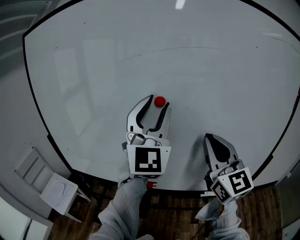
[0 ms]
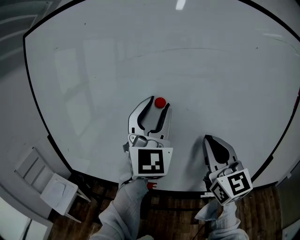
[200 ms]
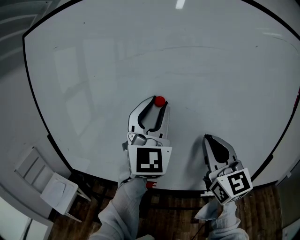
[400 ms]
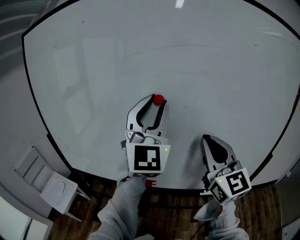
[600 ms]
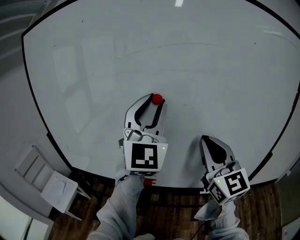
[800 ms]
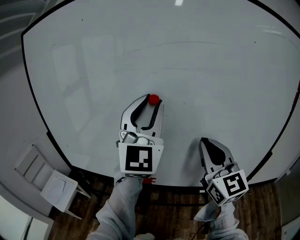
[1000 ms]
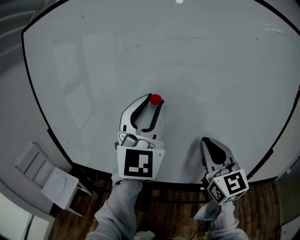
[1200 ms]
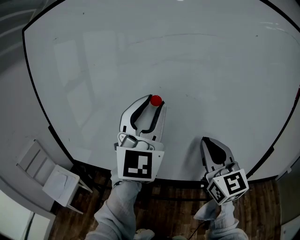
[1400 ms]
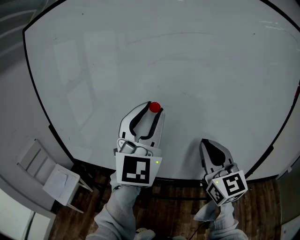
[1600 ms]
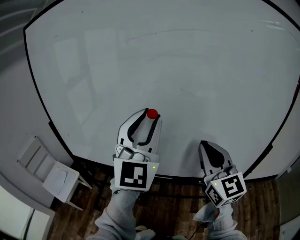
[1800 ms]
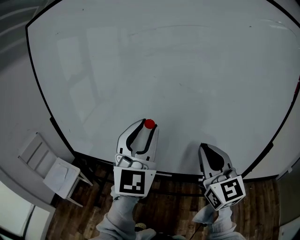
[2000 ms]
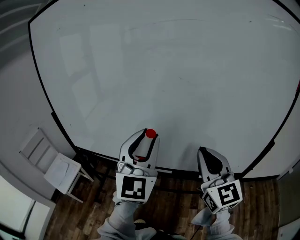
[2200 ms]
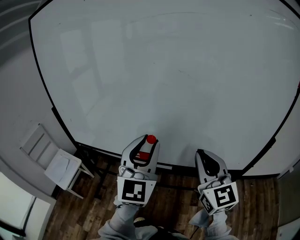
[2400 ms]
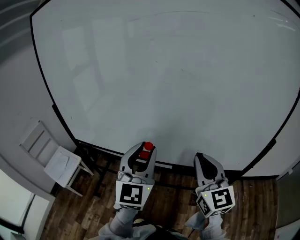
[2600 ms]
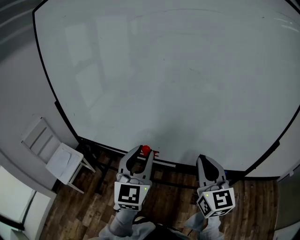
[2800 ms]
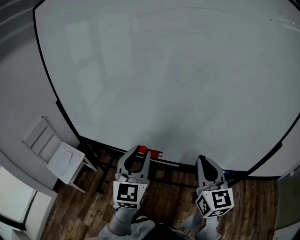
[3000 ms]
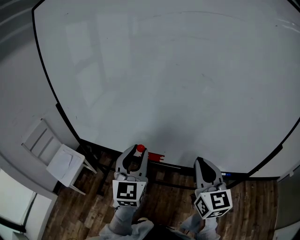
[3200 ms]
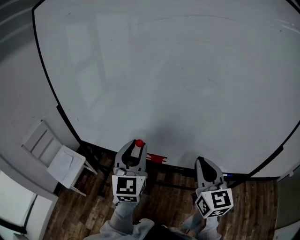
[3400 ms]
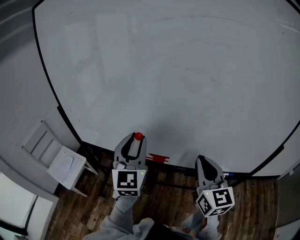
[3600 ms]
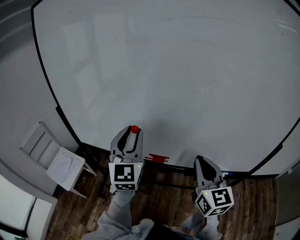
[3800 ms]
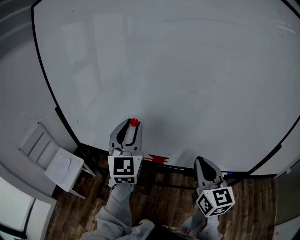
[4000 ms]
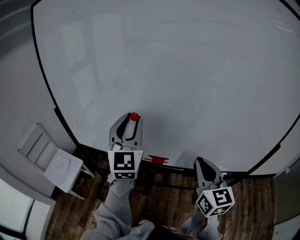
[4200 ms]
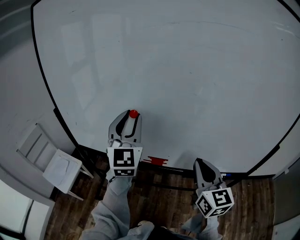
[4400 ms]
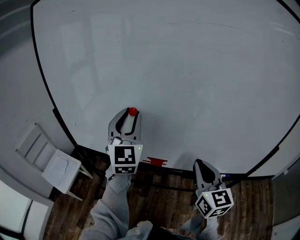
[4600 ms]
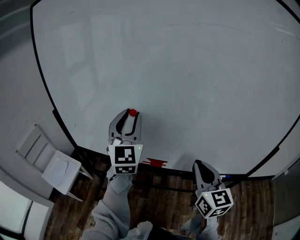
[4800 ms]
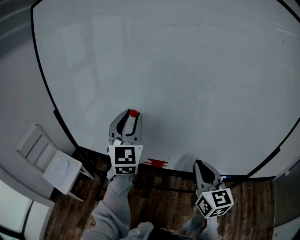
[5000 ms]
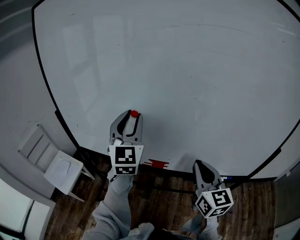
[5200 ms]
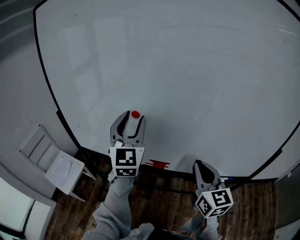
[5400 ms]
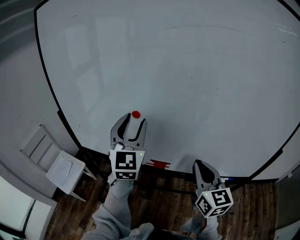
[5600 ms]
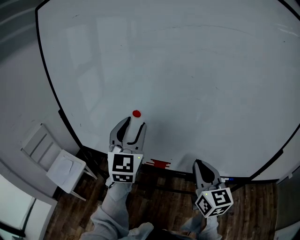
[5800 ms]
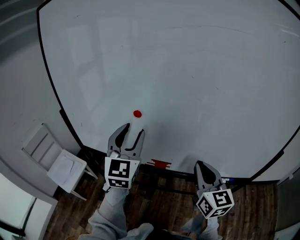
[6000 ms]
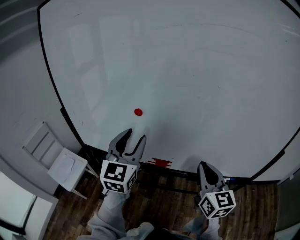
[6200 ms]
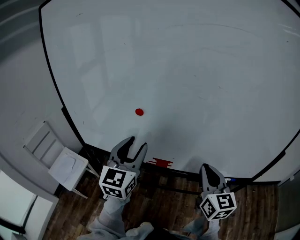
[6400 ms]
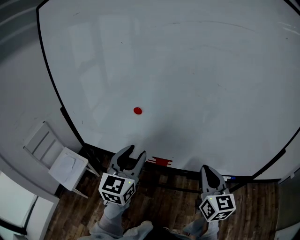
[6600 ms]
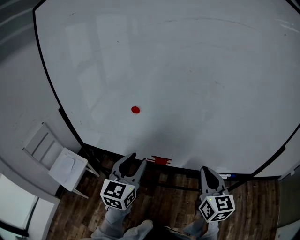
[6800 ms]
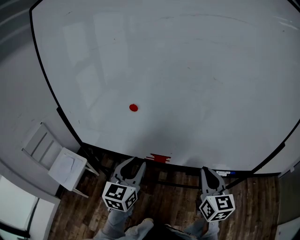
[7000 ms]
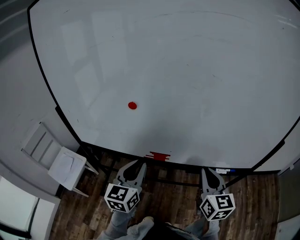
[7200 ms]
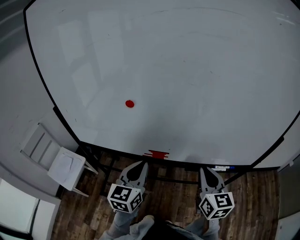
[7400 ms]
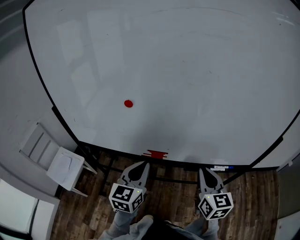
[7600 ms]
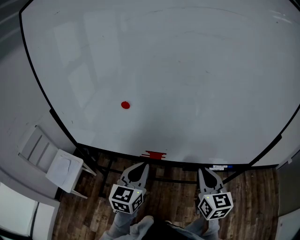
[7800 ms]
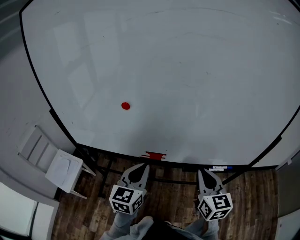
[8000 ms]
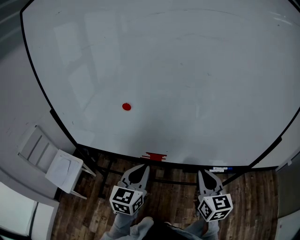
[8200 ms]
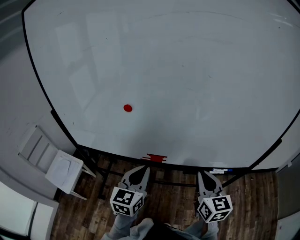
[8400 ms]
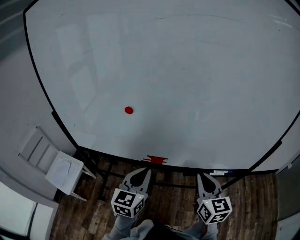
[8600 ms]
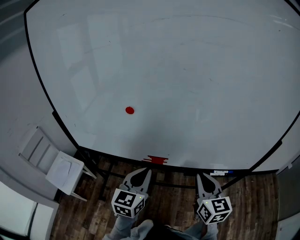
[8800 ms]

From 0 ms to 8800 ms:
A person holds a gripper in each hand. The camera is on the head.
From 0 ms to 1400 ms: The right gripper ends up about 5 cm from where it was.
From 1400 ms to 3000 ms: The right gripper goes approximately 15 cm downward, while the left gripper moves downward, about 25 cm, and turns by roughly 30 degrees.
From 3000 ms to 4400 ms: The right gripper heads to the left, covering about 5 cm; the left gripper goes some 15 cm forward, upward and to the left.
From 4400 ms to 5800 ms: The grippers move only a little.
From 5800 ms to 7400 ms: The left gripper shifts some 20 cm downward and backward, turns by roughly 30 degrees, and closes its fingers; the right gripper is displaced downward by some 5 cm.
From 7400 ms to 8800 ms: There are only small adjustments of the grippers.

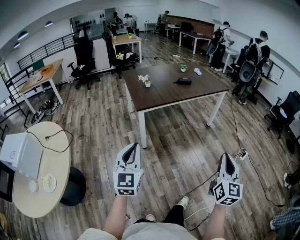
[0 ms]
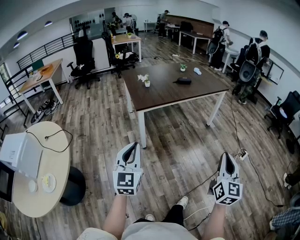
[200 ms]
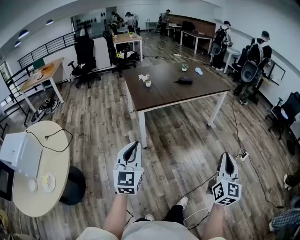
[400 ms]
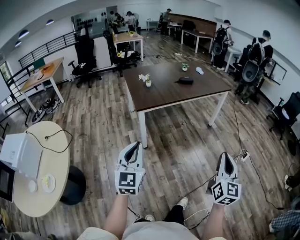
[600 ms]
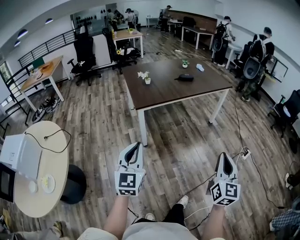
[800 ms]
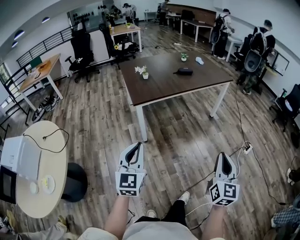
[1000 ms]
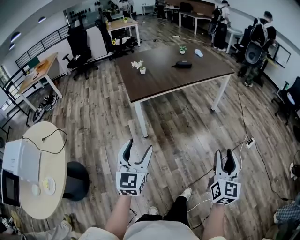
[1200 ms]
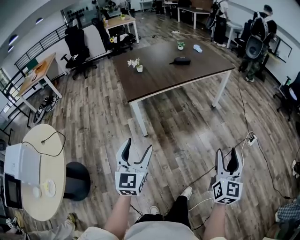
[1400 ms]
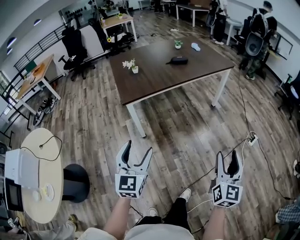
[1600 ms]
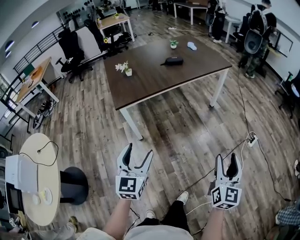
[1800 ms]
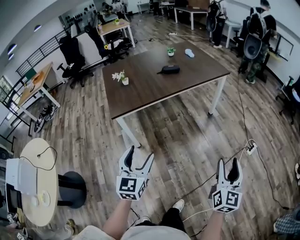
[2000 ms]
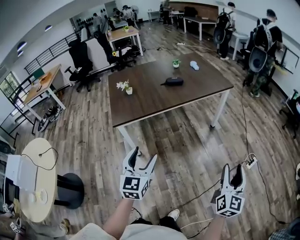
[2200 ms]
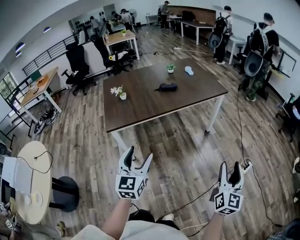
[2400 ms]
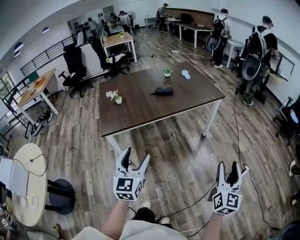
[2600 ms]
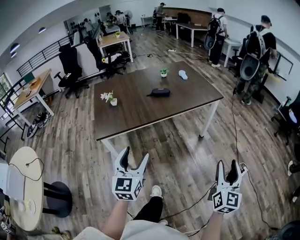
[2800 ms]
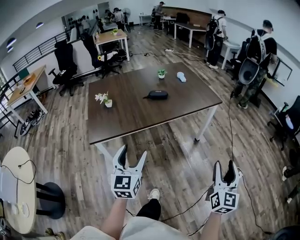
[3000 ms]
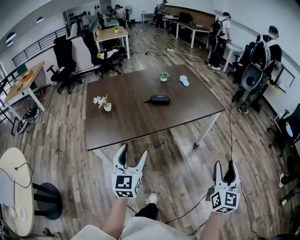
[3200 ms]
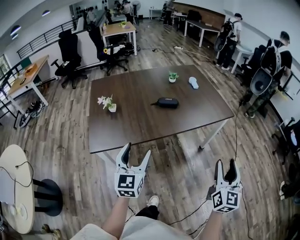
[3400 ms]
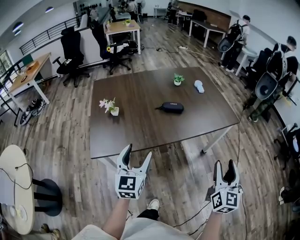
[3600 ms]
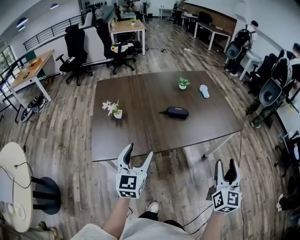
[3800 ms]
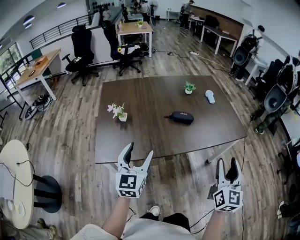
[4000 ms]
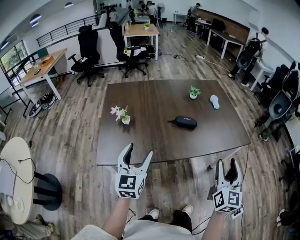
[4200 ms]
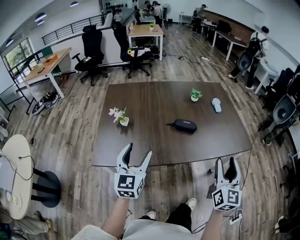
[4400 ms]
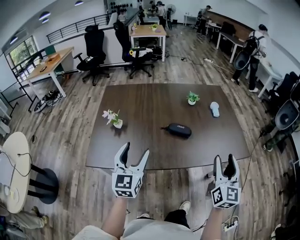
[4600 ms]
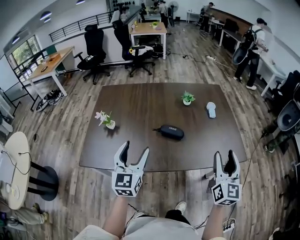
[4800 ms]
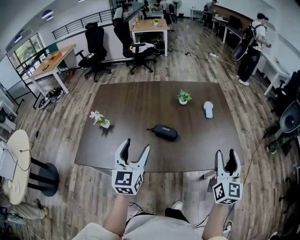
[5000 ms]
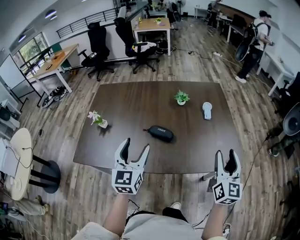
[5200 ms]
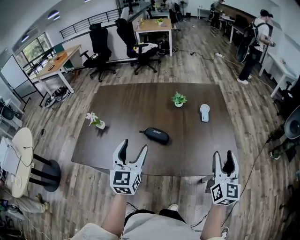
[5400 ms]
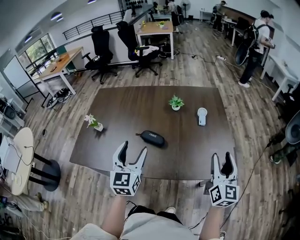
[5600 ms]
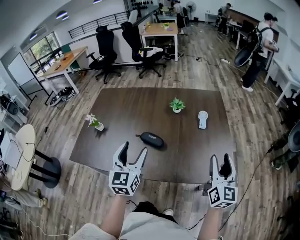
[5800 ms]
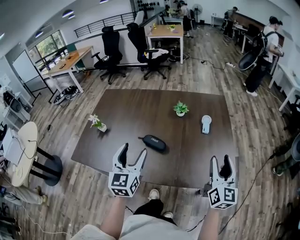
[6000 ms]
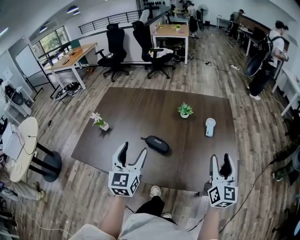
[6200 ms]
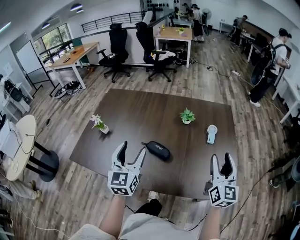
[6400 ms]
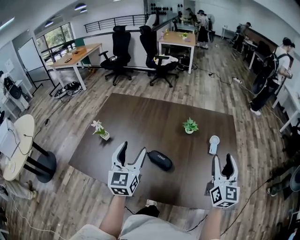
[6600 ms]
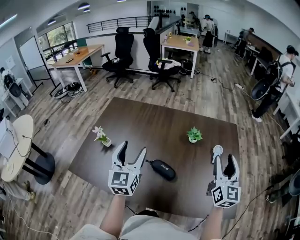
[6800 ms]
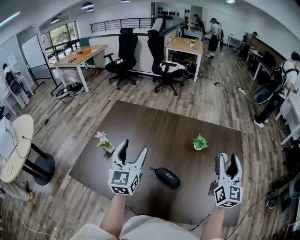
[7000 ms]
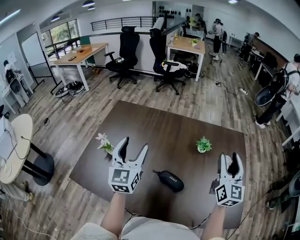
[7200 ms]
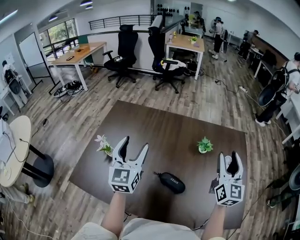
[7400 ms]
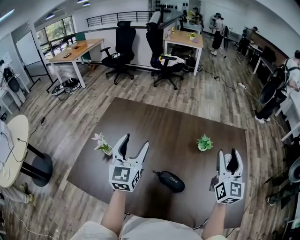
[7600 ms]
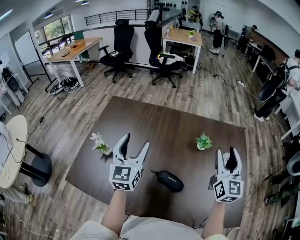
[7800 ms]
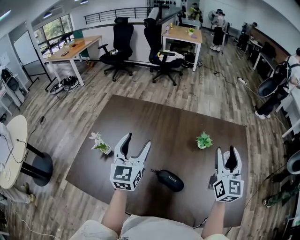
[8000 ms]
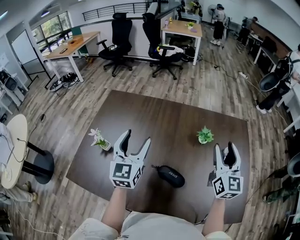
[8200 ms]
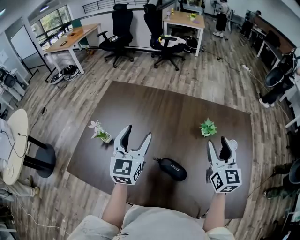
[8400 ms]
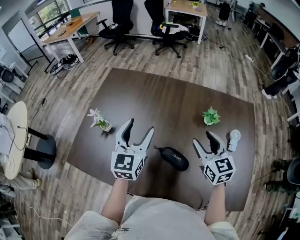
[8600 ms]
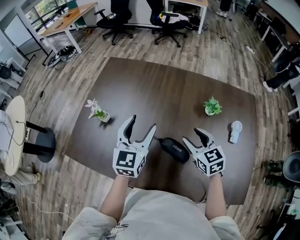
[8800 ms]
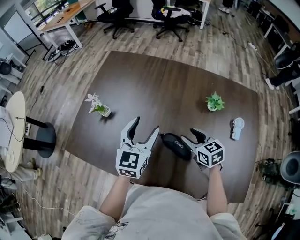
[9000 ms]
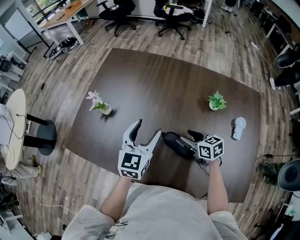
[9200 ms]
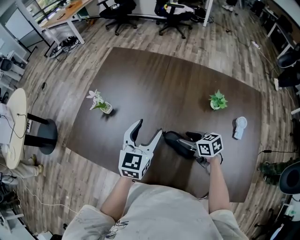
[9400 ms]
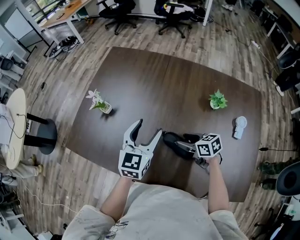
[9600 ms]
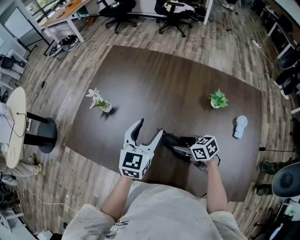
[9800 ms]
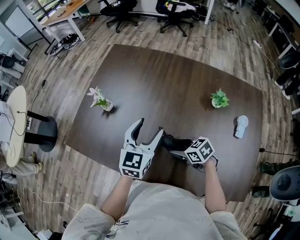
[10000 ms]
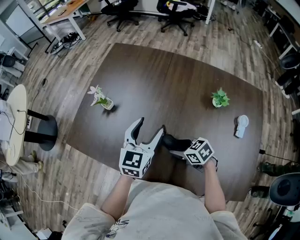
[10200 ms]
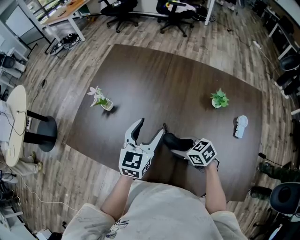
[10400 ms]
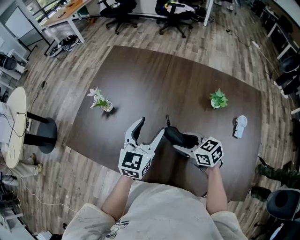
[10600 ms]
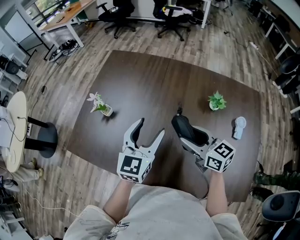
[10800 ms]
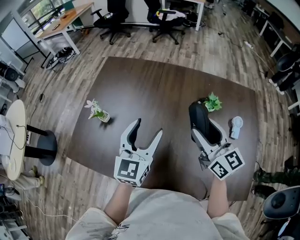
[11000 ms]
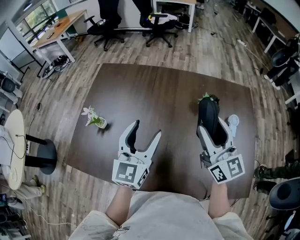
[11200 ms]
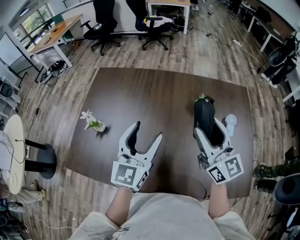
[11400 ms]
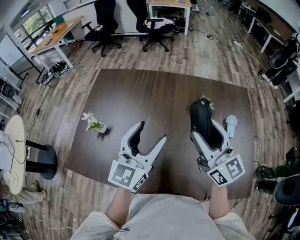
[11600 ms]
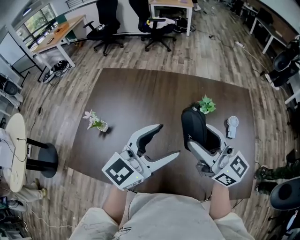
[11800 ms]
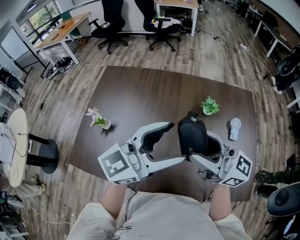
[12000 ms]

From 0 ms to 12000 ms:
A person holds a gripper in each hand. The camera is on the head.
From 0 ms to 1600 ms: The right gripper is displaced forward, downward and to the right by some 15 cm, and opens. Meanwhile the left gripper goes about 20 cm forward, to the right and downward, and opens.
From 1600 ms to 3000 ms: Both grippers move forward and to the right, about 35 cm.
From 3000 ms to 4400 ms: The two grippers go some 35 cm forward.
From 4400 ms to 6000 ms: The grippers both shift to the right and forward by some 35 cm.
From 6000 ms to 7600 ms: The two grippers go roughly 30 cm forward and to the left.
From 7600 ms to 9000 ms: The right gripper is displaced downward and to the left by roughly 30 cm, and points its fingers roughly 40 degrees further downward; the left gripper heads downward, covering about 10 cm.
From 9000 ms to 10400 ms: The right gripper is displaced to the left and downward by approximately 10 cm, and swivels some 30 degrees.
From 10400 ms to 12000 ms: The left gripper travels upward by some 20 cm, and rotates some 50 degrees. Meanwhile the right gripper travels upward by roughly 35 cm, and points its fingers about 60 degrees further upward.

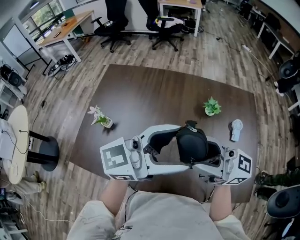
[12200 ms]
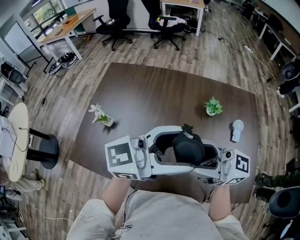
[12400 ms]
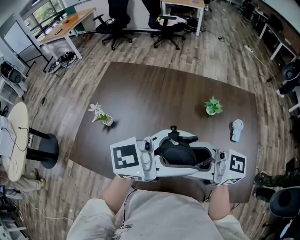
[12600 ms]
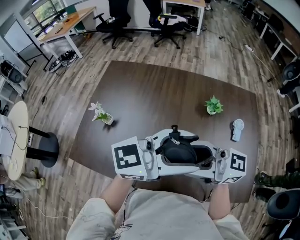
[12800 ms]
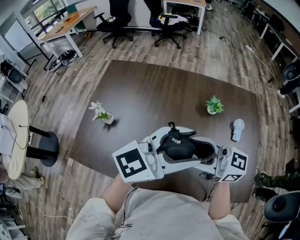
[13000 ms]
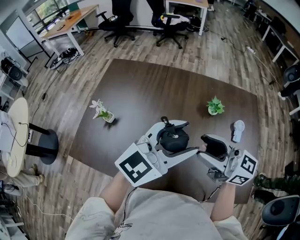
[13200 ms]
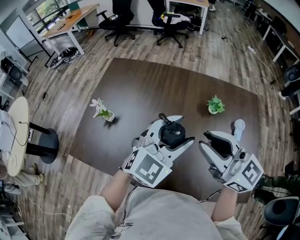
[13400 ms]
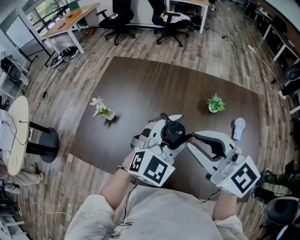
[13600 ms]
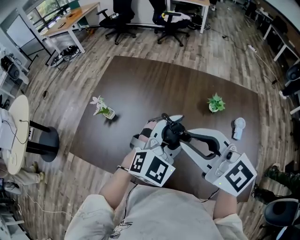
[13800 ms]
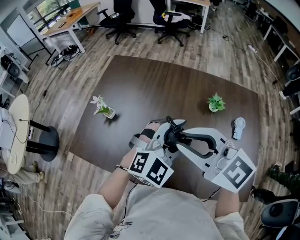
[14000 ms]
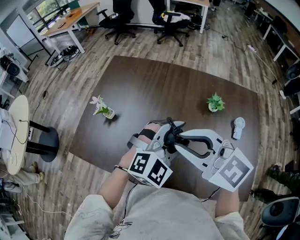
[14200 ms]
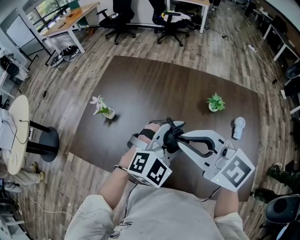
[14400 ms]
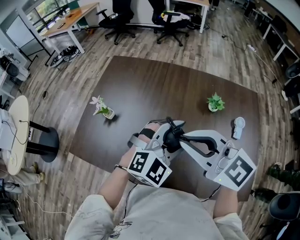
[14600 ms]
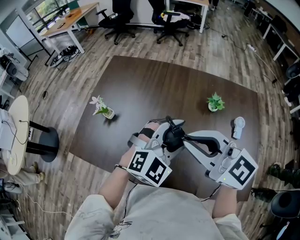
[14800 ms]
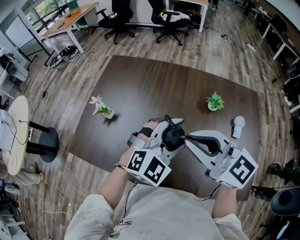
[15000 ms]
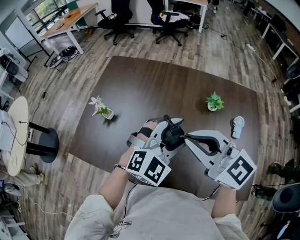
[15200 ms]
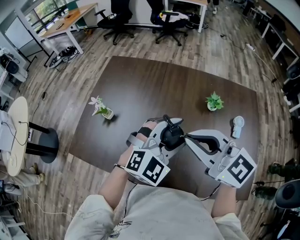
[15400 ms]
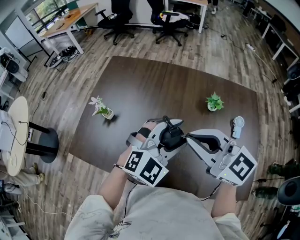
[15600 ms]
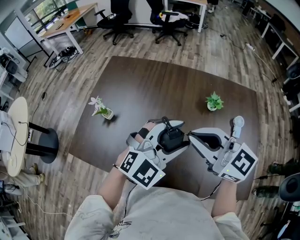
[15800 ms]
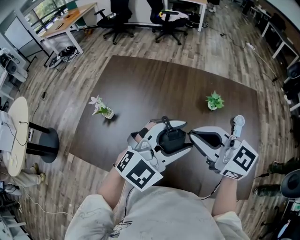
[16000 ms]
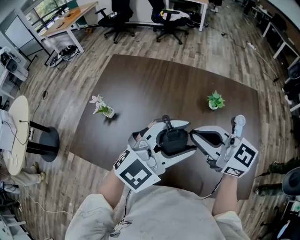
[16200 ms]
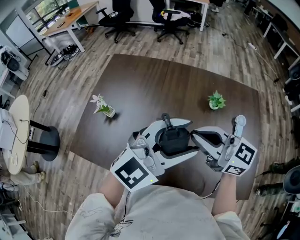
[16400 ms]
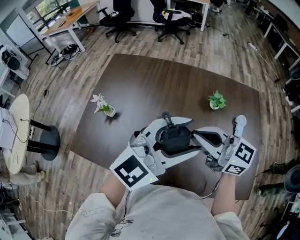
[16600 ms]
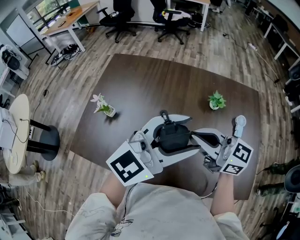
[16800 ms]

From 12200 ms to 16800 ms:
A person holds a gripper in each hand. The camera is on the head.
From 12200 ms to 13800 ms: The right gripper changes place by some 5 cm, changes its angle by roughly 40 degrees, and closes. The left gripper goes some 10 cm downward, and changes its angle by about 60 degrees.
From 13800 ms to 15200 ms: The grippers move only a little.
From 15200 ms to 16800 ms: The right gripper shifts roughly 5 cm downward, and turns by approximately 20 degrees, while the left gripper is displaced upward by roughly 10 cm, and turns by about 40 degrees.
